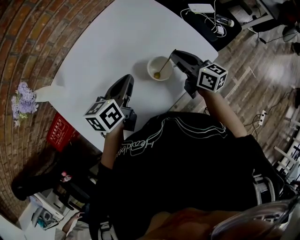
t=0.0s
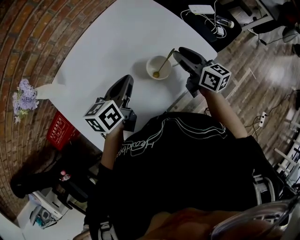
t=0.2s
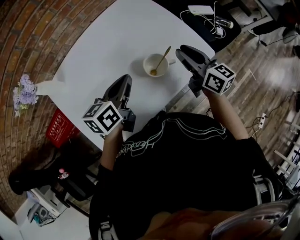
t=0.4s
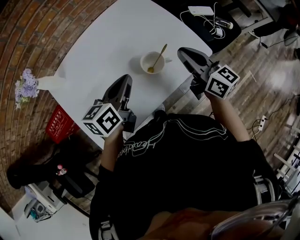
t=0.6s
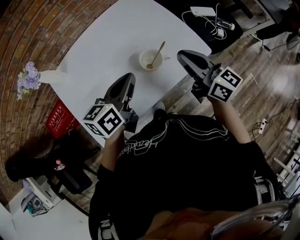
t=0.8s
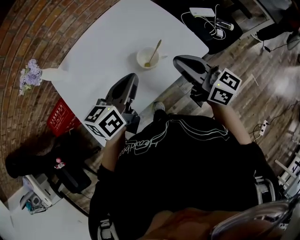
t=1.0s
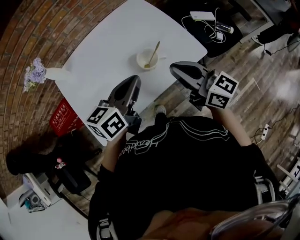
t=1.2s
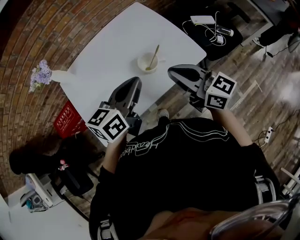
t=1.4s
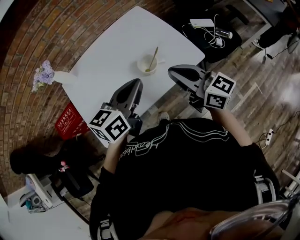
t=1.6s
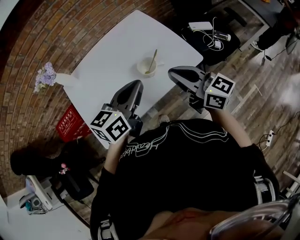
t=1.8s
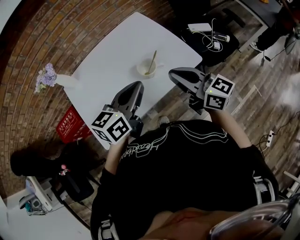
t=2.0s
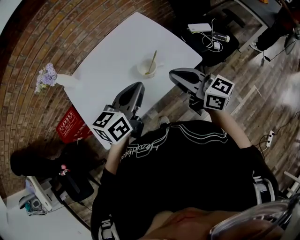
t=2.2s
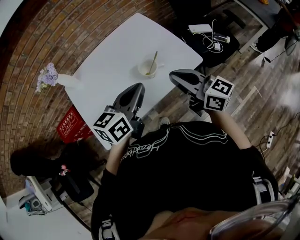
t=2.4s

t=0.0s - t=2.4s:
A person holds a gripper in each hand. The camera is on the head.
t=0.0s - t=1.2s: The left gripper moves backward, upward and to the right, about 20 cm. The right gripper travels upward and backward by about 20 cm, swivels about 30 degrees, and opens, then closes again.
t=1.2s - t=2.4s: The left gripper changes place by roughly 5 cm.

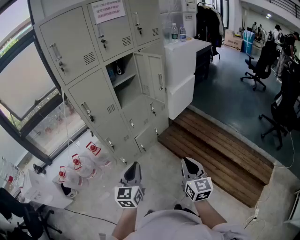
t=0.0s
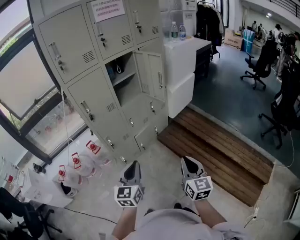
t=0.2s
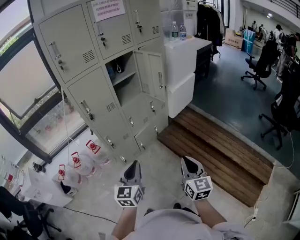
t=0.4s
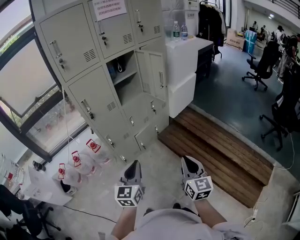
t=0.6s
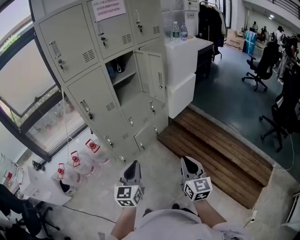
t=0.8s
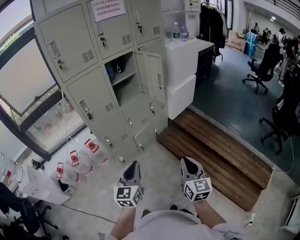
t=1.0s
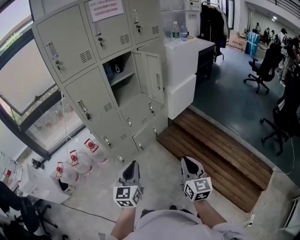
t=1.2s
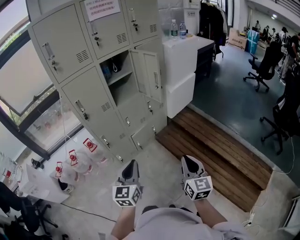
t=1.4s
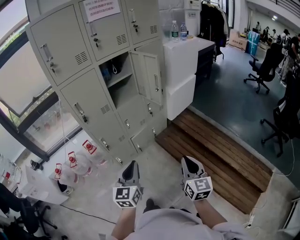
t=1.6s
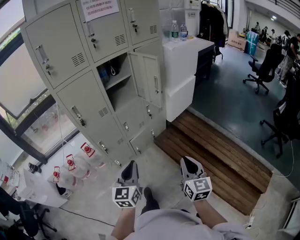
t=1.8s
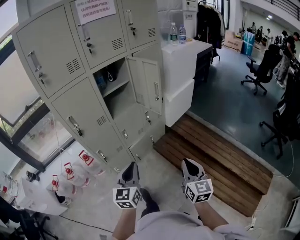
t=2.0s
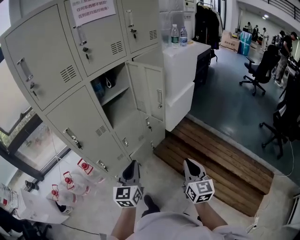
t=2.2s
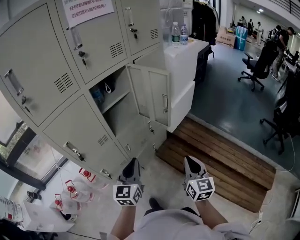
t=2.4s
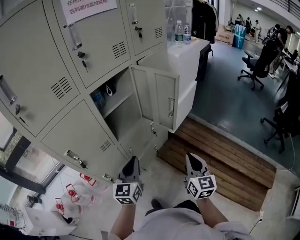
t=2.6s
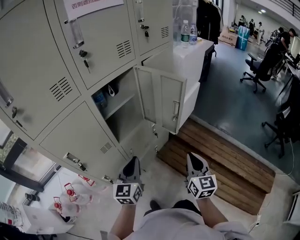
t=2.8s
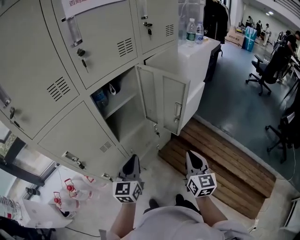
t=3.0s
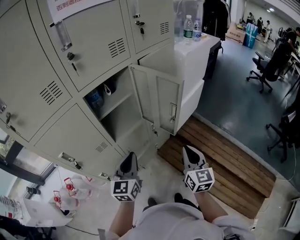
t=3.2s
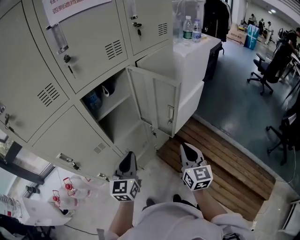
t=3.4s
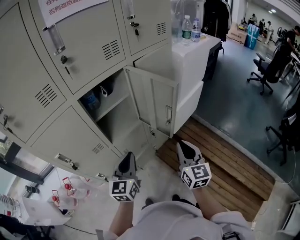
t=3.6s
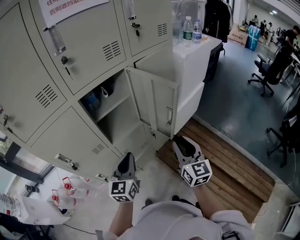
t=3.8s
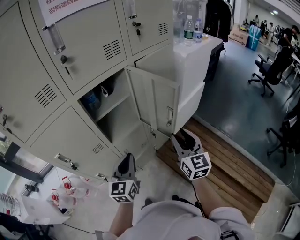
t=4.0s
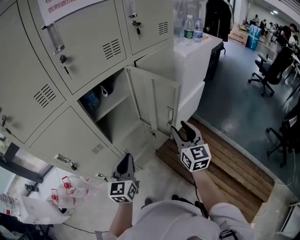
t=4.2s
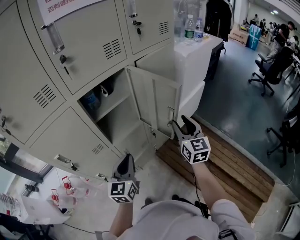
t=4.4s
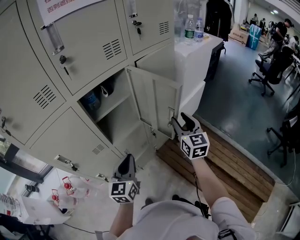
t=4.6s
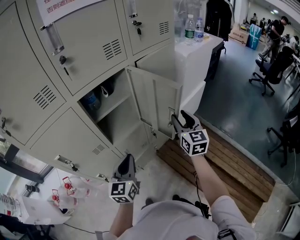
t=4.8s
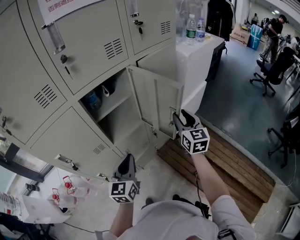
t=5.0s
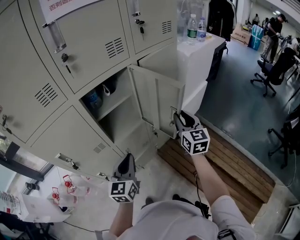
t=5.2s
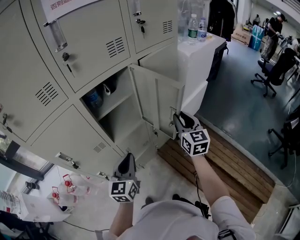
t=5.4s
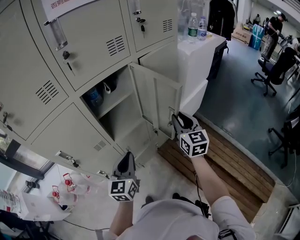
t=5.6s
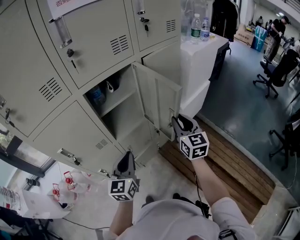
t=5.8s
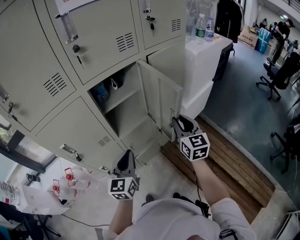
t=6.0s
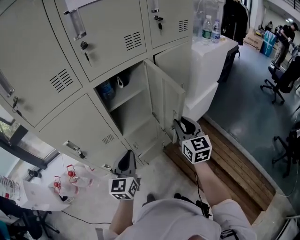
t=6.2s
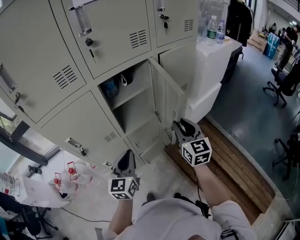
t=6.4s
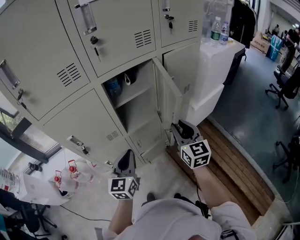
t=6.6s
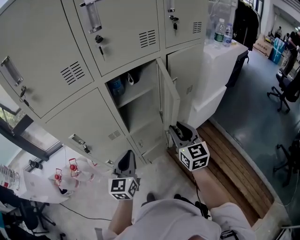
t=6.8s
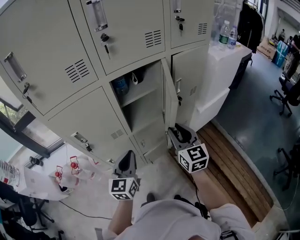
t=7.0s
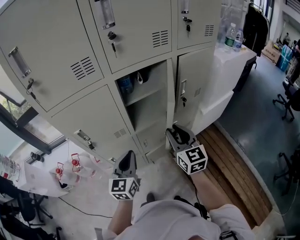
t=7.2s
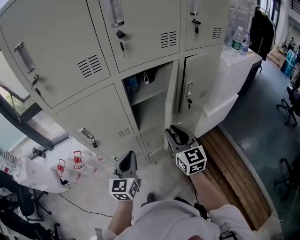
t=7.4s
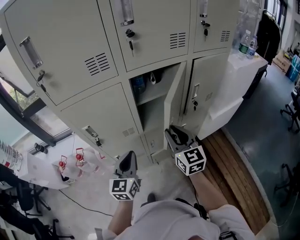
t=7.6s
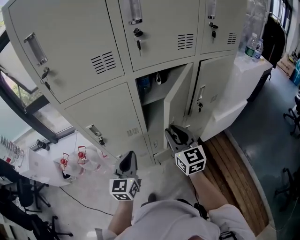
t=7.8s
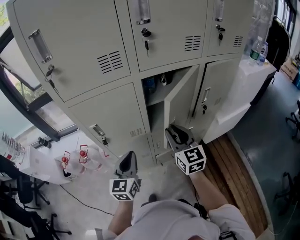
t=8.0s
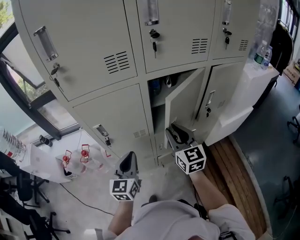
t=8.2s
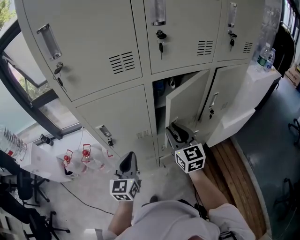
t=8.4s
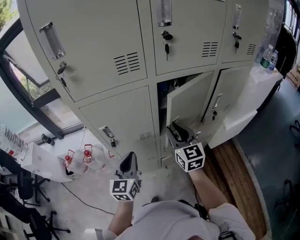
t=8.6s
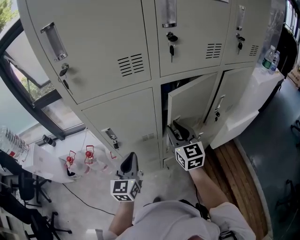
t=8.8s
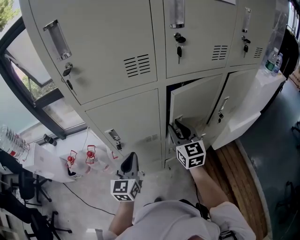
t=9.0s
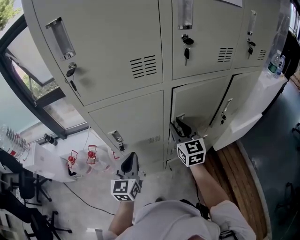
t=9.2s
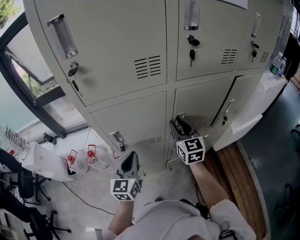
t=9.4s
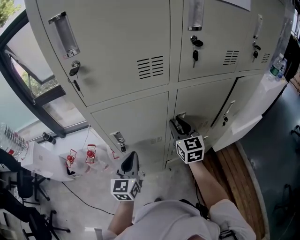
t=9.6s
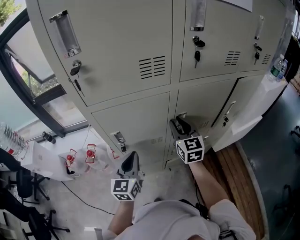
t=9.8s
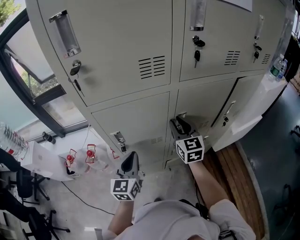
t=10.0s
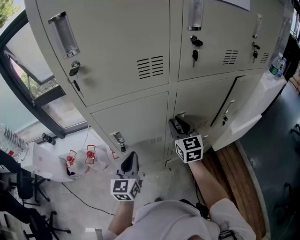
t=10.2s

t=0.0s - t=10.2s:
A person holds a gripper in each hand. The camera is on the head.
t=0.0s - t=1.4s: The left gripper ends up some 5 cm from where it was. The right gripper travels to the right by roughly 5 cm.
t=1.4s - t=3.0s: The two grippers go about 35 cm forward.
t=3.0s - t=4.4s: The right gripper goes roughly 15 cm forward, and opens.
t=4.4s - t=5.8s: The grippers stay close to where they were, moving slightly.
t=5.8s - t=7.2s: The right gripper shifts approximately 15 cm to the left. Meanwhile the left gripper shifts some 10 cm to the left.
t=7.2s - t=8.8s: The right gripper travels to the left and forward by about 15 cm; the left gripper goes about 10 cm to the left.
t=8.8s - t=10.2s: The right gripper is displaced forward by approximately 5 cm.

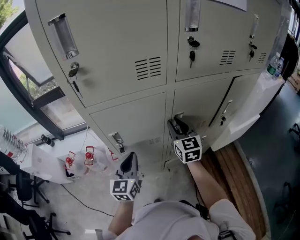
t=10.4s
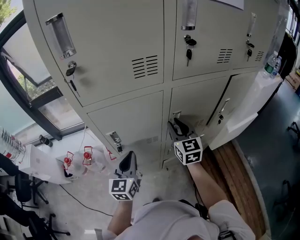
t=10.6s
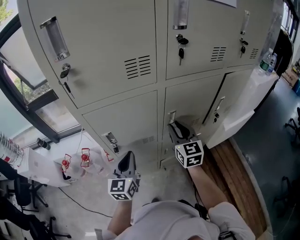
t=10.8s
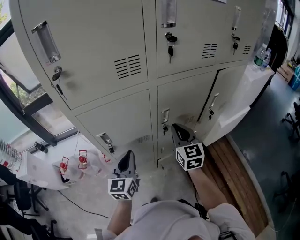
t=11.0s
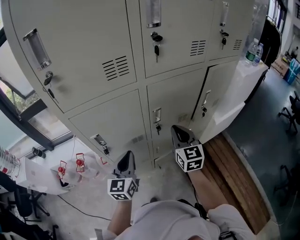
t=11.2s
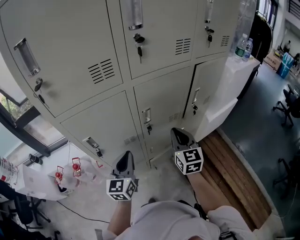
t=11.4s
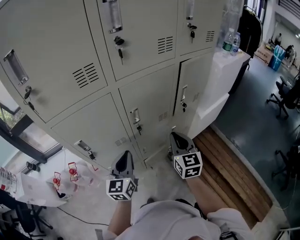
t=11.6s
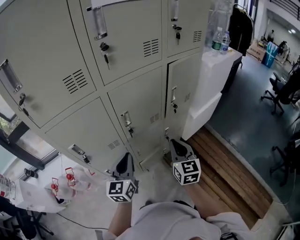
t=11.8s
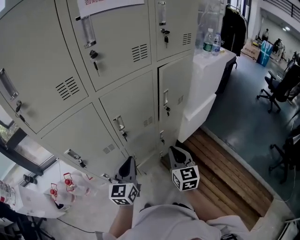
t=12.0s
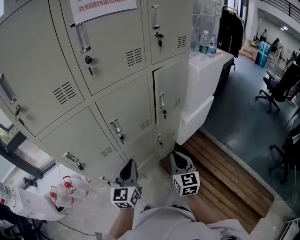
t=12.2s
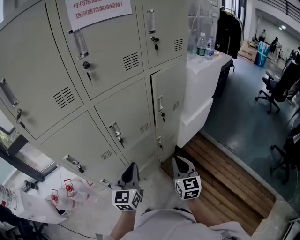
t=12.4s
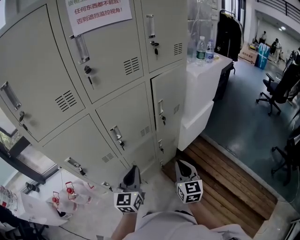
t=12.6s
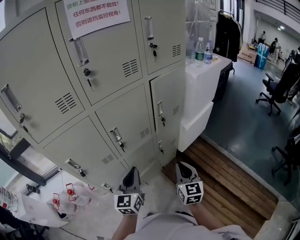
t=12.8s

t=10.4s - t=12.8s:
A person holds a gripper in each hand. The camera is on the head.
t=10.4s - t=11.6s: The right gripper goes some 20 cm to the right and backward, and closes its fingers; the left gripper travels to the right by about 15 cm.
t=11.6s - t=12.8s: The left gripper goes roughly 10 cm to the right. Meanwhile the right gripper moves to the right and backward, approximately 15 cm.

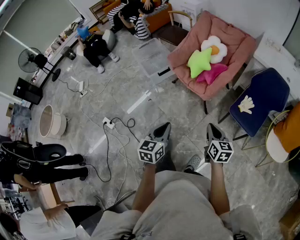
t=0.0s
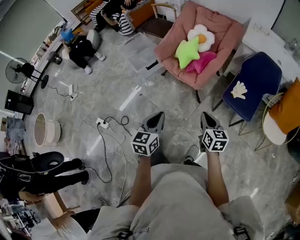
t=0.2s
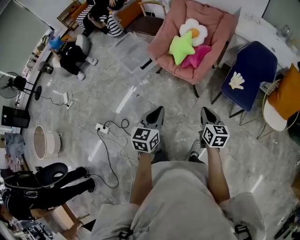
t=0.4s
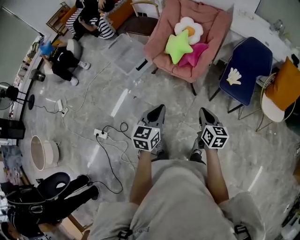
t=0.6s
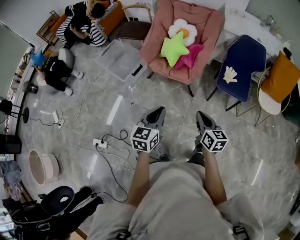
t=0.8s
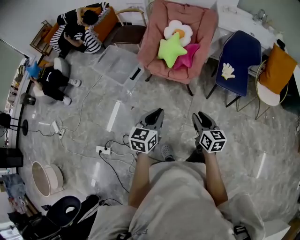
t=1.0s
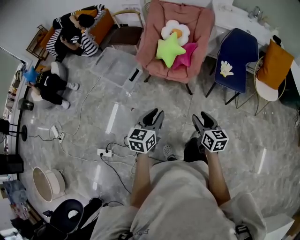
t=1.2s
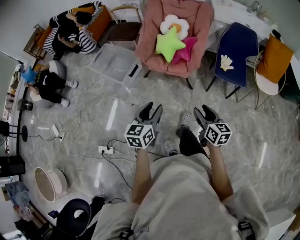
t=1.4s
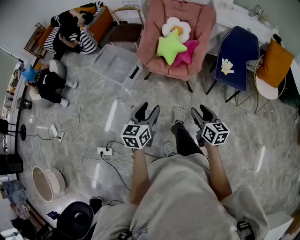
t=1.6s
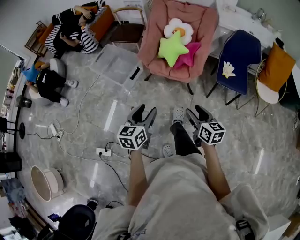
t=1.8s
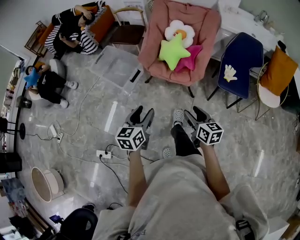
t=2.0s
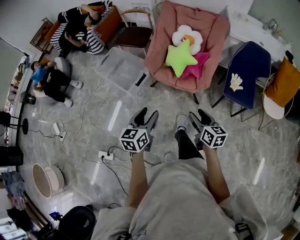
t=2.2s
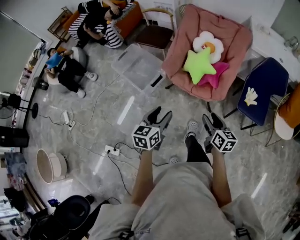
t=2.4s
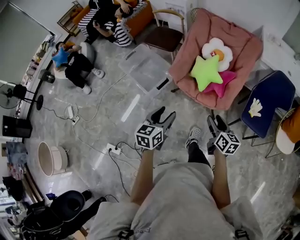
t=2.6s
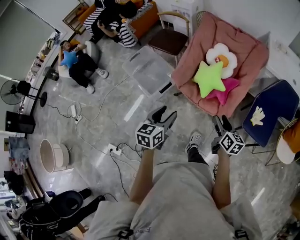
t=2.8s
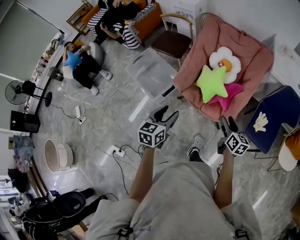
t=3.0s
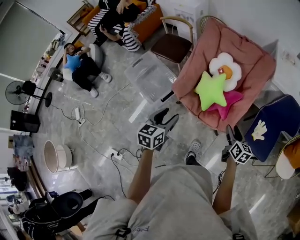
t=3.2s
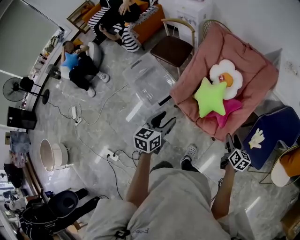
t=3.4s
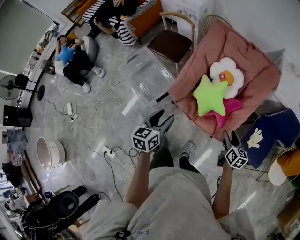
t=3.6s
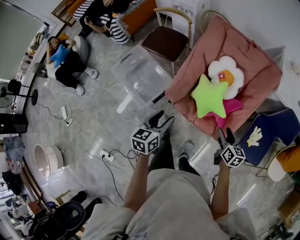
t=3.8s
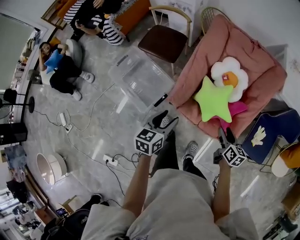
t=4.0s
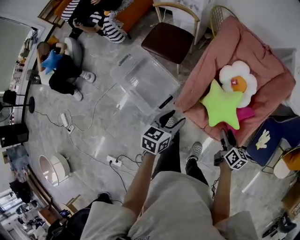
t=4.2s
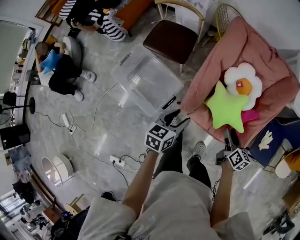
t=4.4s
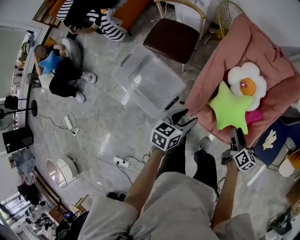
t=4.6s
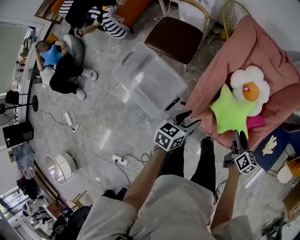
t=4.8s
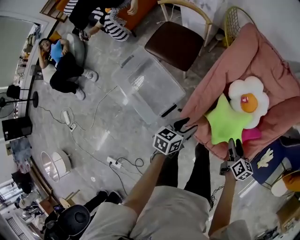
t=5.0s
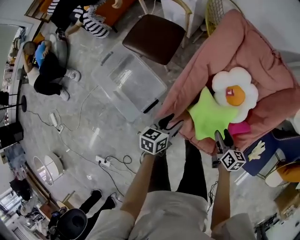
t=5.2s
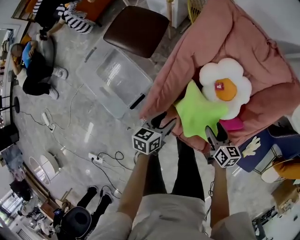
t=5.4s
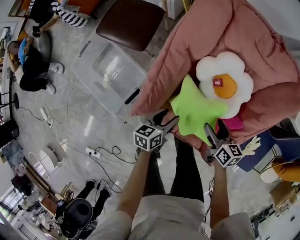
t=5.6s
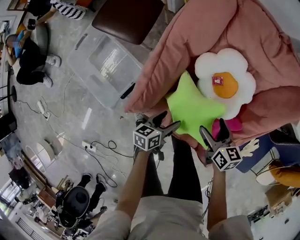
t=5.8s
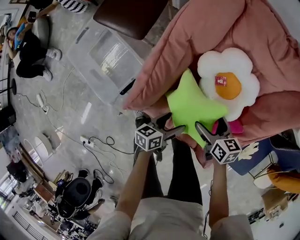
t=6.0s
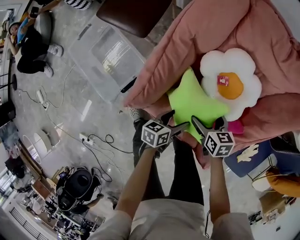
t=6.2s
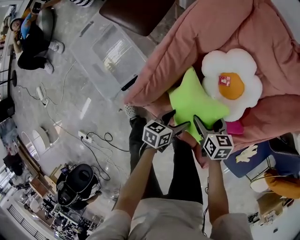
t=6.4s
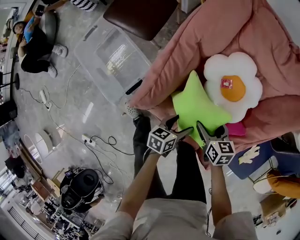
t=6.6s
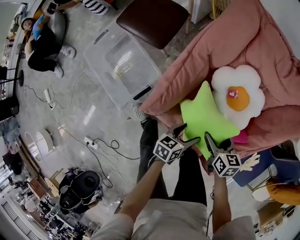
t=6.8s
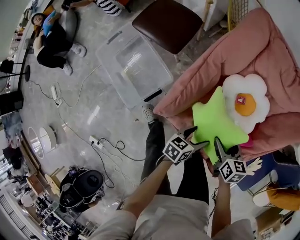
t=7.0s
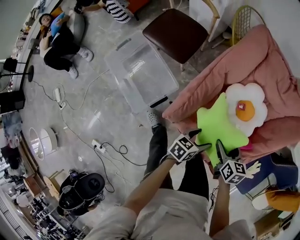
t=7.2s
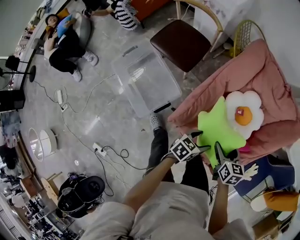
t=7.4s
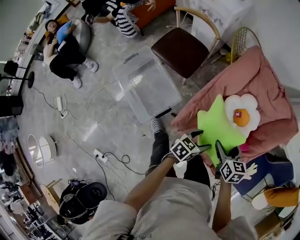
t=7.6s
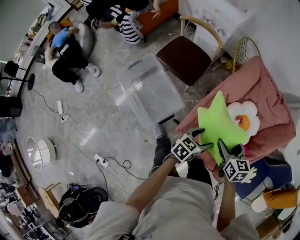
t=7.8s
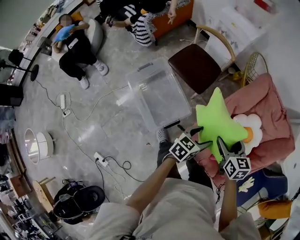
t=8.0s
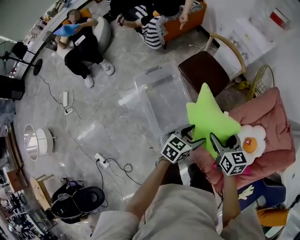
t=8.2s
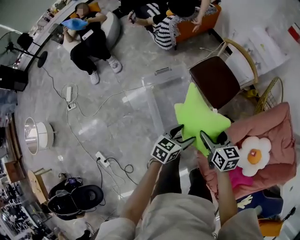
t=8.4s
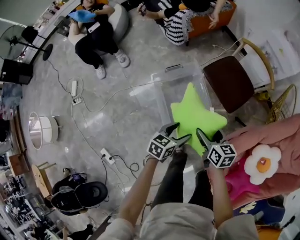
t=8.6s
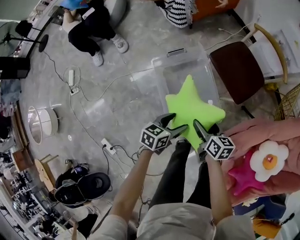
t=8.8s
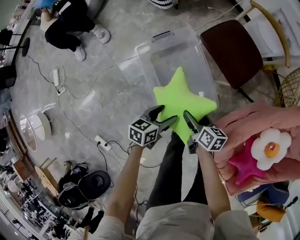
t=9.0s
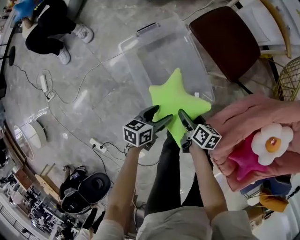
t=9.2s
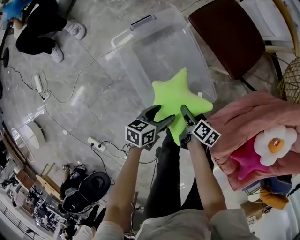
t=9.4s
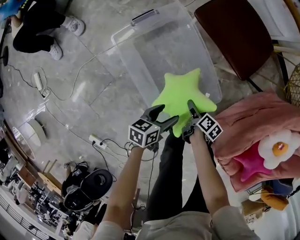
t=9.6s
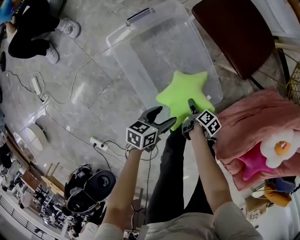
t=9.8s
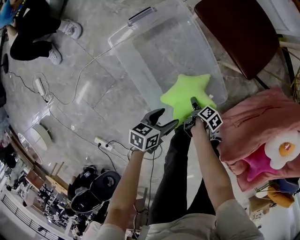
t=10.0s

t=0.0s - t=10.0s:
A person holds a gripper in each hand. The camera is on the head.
t=0.0s - t=1.4s: The two grippers go roughly 20 cm to the left. The right gripper opens. Meanwhile the left gripper turns by approximately 20 degrees, and opens.
t=1.4s - t=2.8s: The grippers both shift forward by some 30 cm.
t=2.8s - t=4.2s: The right gripper travels forward and downward by some 30 cm. The left gripper is displaced forward by some 30 cm.
t=4.2s - t=5.8s: The left gripper heads downward and to the right, covering roughly 35 cm, and changes its angle by roughly 30 degrees. Meanwhile the right gripper is displaced forward, downward and to the right by some 20 cm, swivels approximately 20 degrees, and opens up.
t=5.8s - t=7.2s: The left gripper goes roughly 10 cm upward. The right gripper heads upward and to the left, covering roughly 10 cm.
t=7.2s - t=8.6s: The two grippers travel together, about 50 cm. The left gripper swivels about 30 degrees, while the right gripper rotates roughly 30 degrees.
t=8.6s - t=10.0s: The right gripper heads downward, covering roughly 50 cm, and twists some 60 degrees clockwise, seen from behind; the left gripper goes about 30 cm downward, and turns by about 20 degrees.
